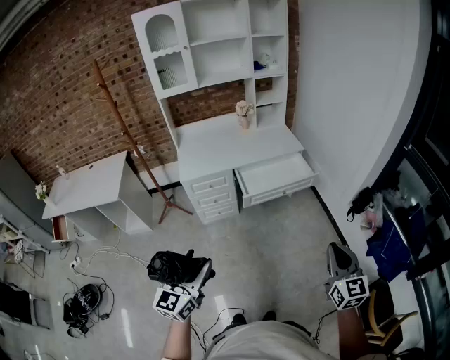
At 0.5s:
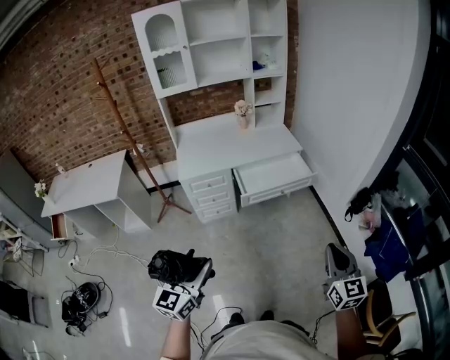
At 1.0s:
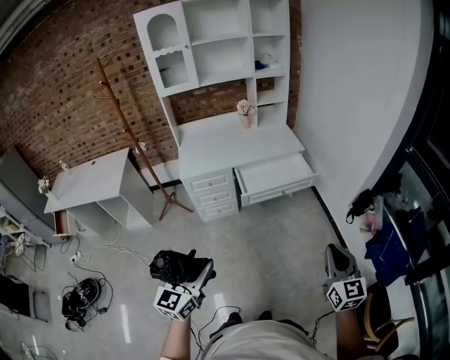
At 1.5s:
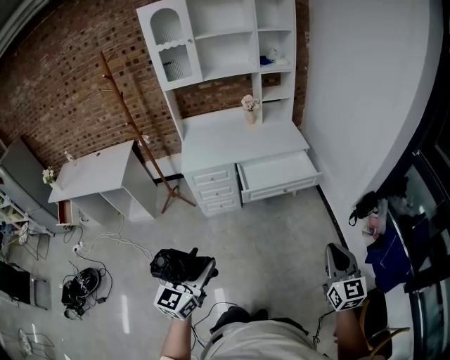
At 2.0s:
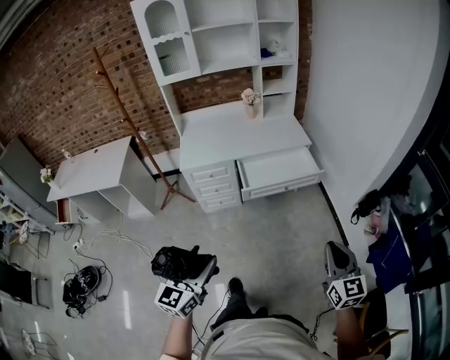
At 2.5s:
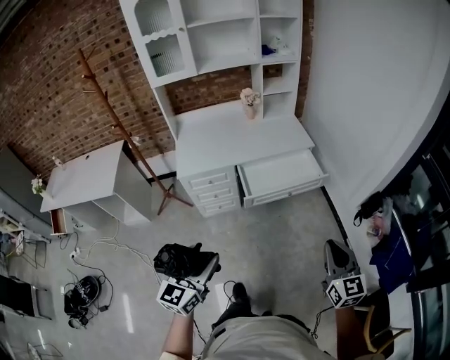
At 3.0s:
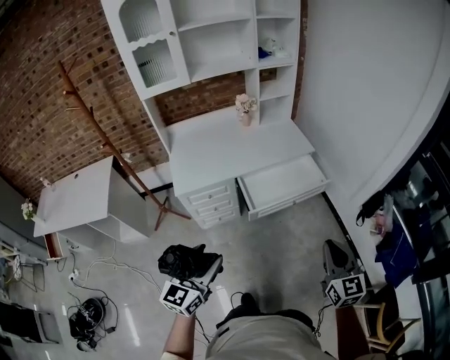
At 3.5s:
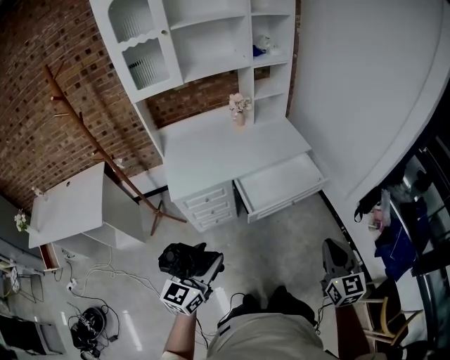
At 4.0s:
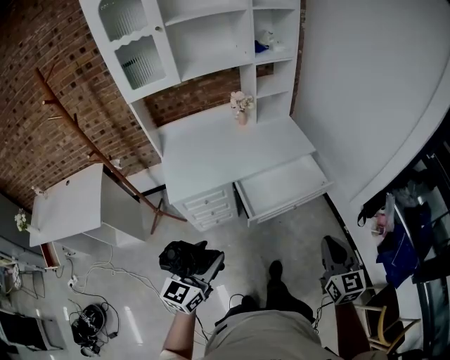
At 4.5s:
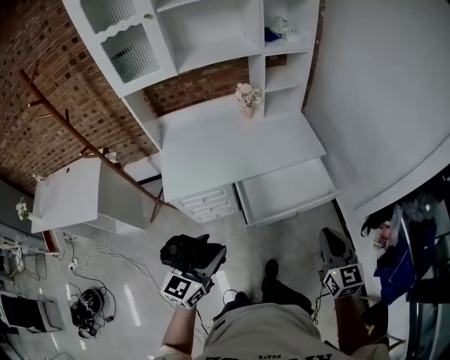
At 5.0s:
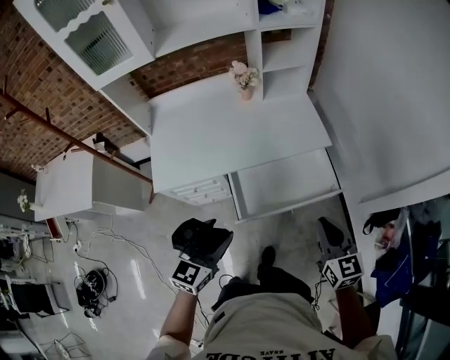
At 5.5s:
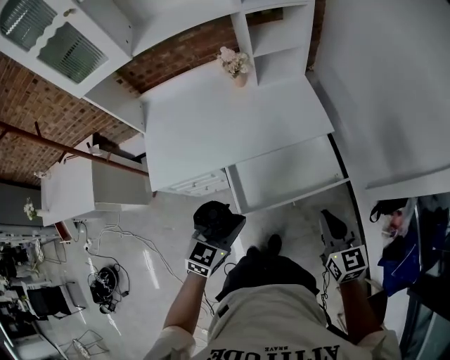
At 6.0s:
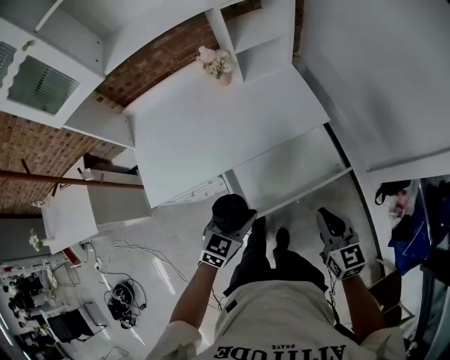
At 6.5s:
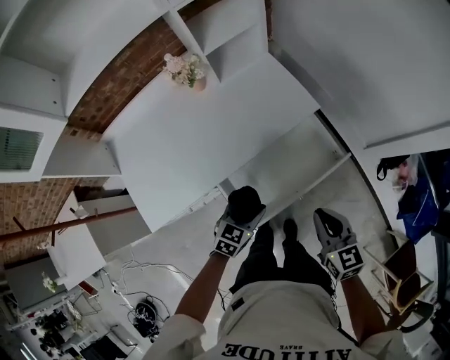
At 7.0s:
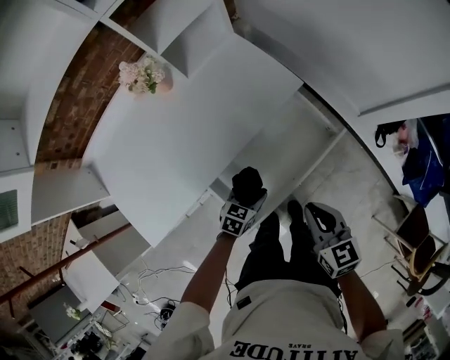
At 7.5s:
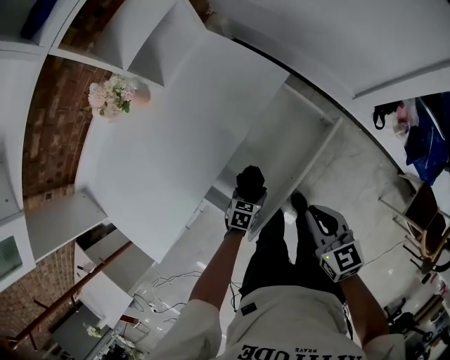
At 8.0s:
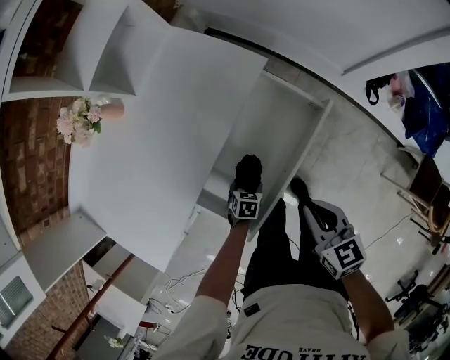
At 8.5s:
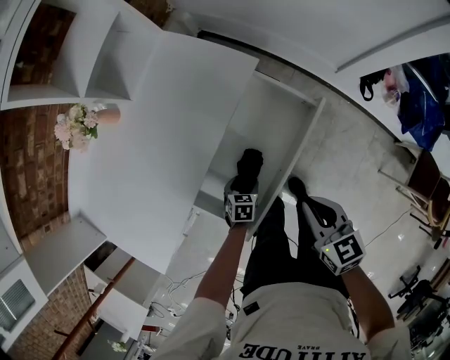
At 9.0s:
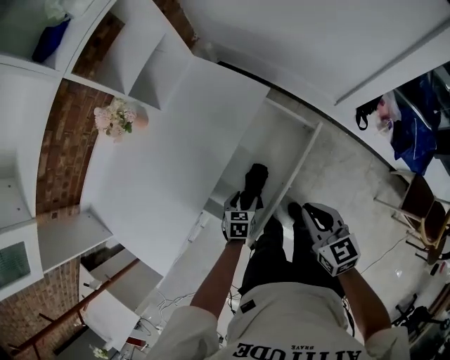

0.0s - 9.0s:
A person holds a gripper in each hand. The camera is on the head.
0.0s - 2.0s: The right gripper goes approximately 5 cm forward; the left gripper is displaced to the right by some 5 cm.
2.0s - 4.5s: The left gripper goes approximately 35 cm forward. The right gripper travels forward and to the left by some 35 cm.
4.5s - 7.0s: The right gripper shifts about 20 cm downward, and changes its angle by about 30 degrees. The left gripper is displaced downward by about 40 cm, and tilts its fingers some 40 degrees downward.
7.0s - 9.0s: The left gripper travels downward and back again, approximately 15 cm each way.

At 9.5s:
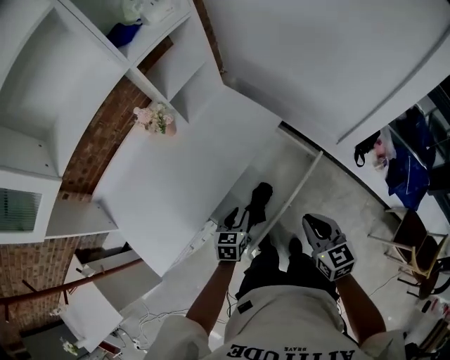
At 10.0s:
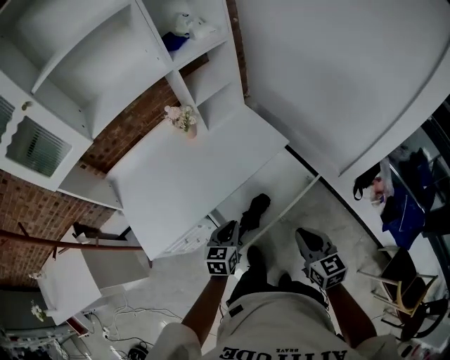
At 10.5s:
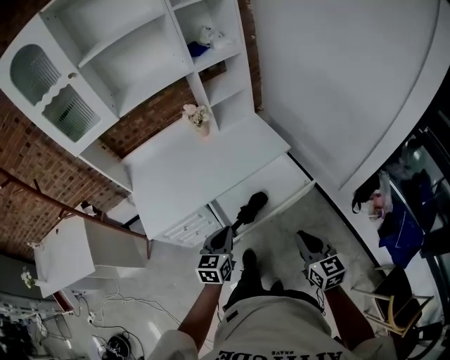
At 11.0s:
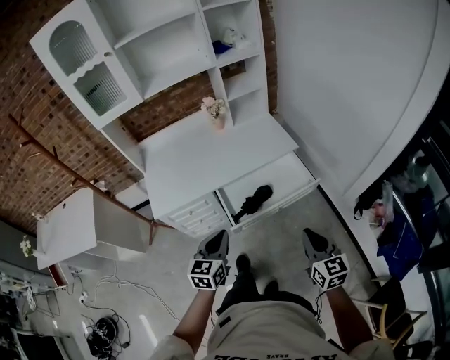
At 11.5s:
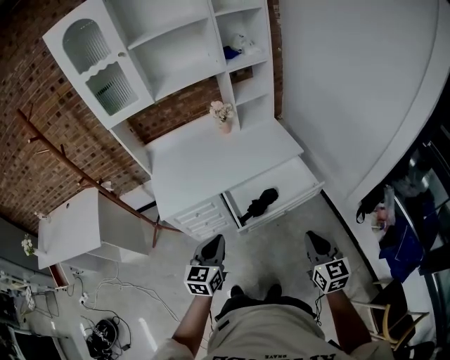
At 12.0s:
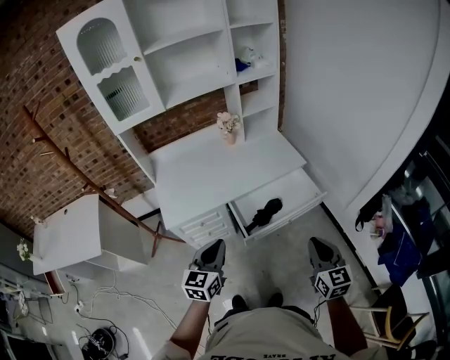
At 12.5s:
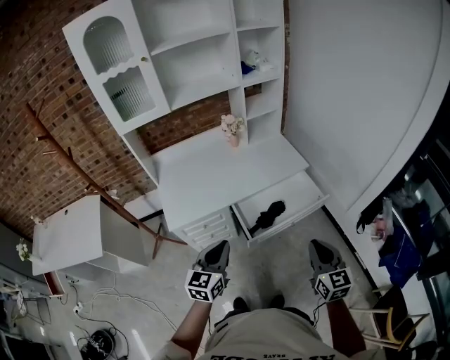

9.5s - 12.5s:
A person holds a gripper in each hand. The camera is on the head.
9.5s - 11.0s: The right gripper moves backward and upward, some 20 cm, and swivels approximately 20 degrees, while the left gripper heads backward and upward, covering about 35 cm, turns by roughly 30 degrees, and closes.
11.0s - 12.5s: The right gripper moves to the left, roughly 10 cm. The left gripper travels to the left and upward by roughly 10 cm.

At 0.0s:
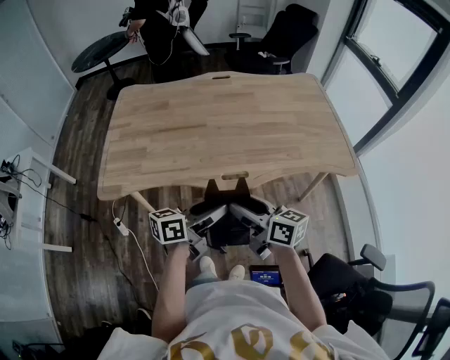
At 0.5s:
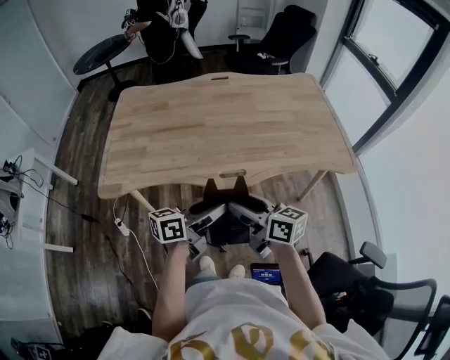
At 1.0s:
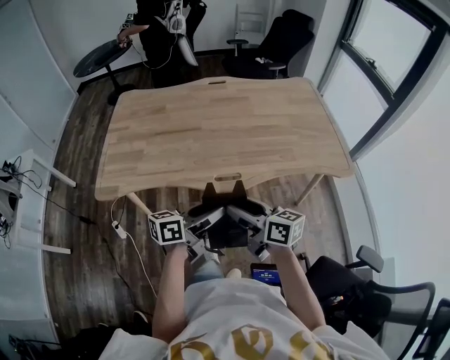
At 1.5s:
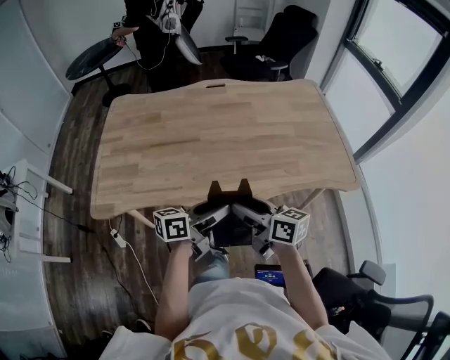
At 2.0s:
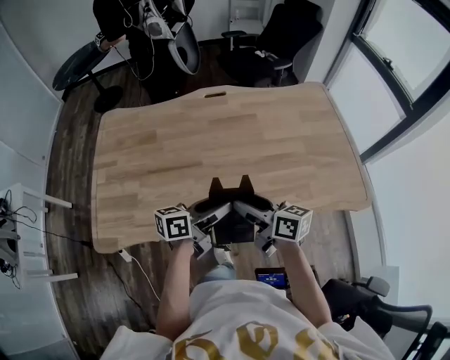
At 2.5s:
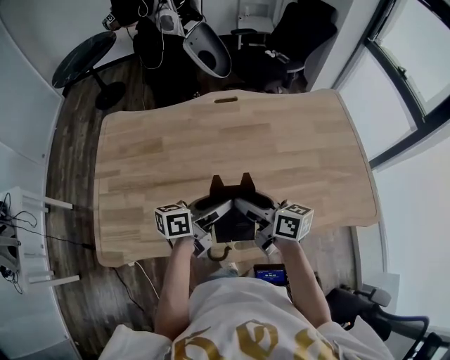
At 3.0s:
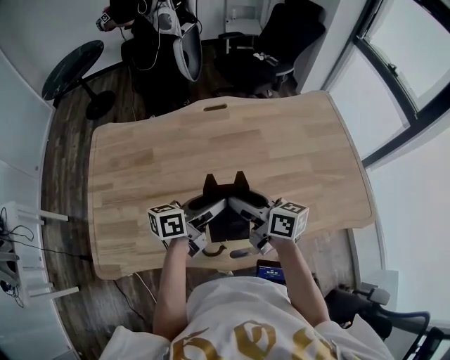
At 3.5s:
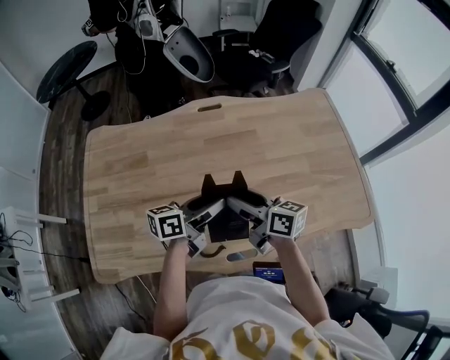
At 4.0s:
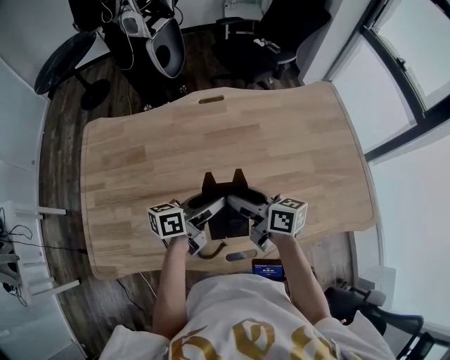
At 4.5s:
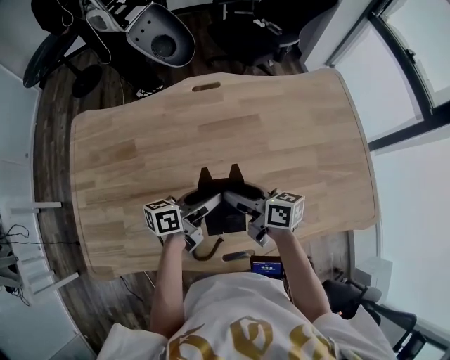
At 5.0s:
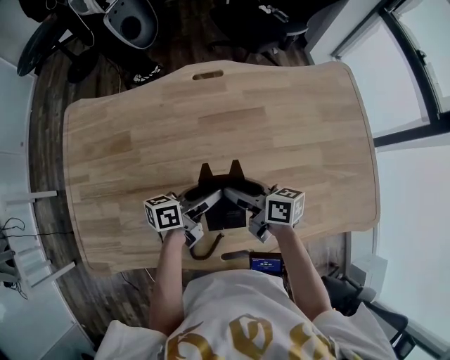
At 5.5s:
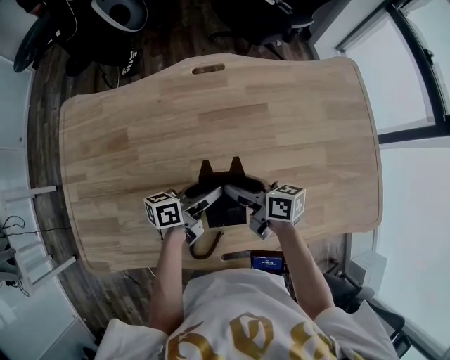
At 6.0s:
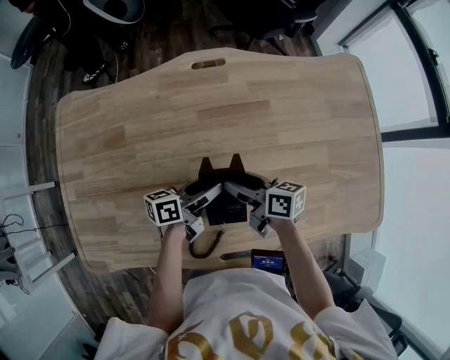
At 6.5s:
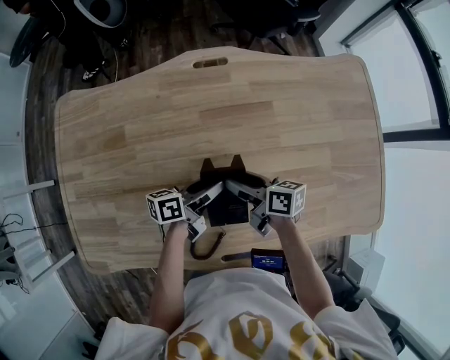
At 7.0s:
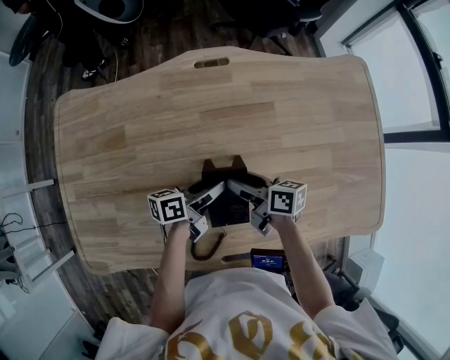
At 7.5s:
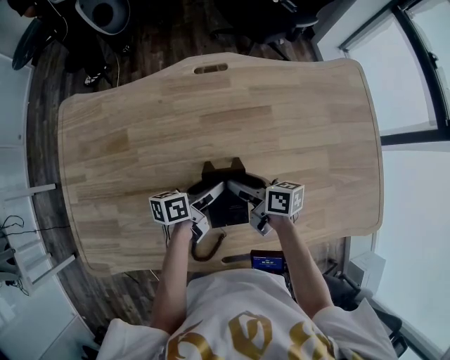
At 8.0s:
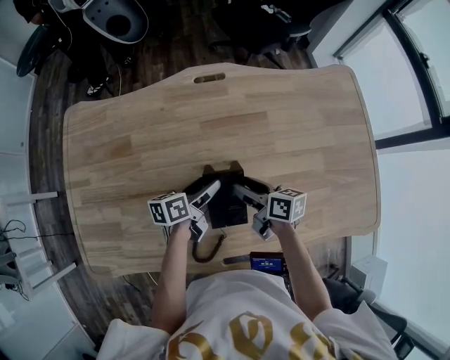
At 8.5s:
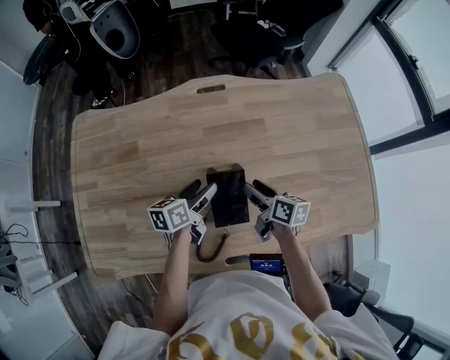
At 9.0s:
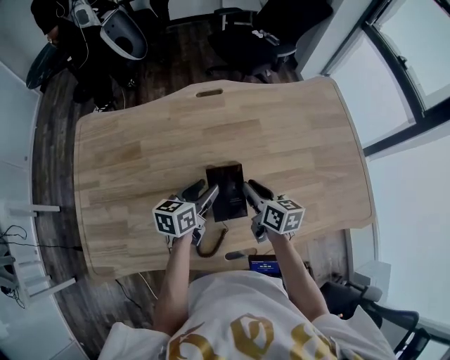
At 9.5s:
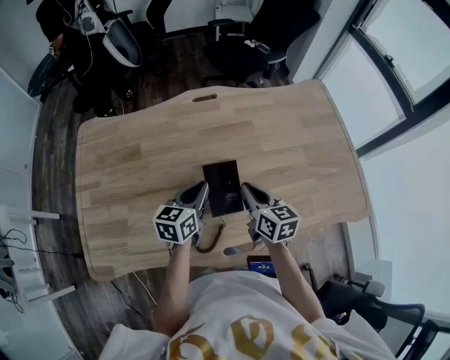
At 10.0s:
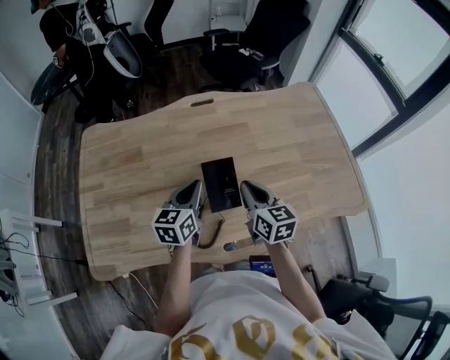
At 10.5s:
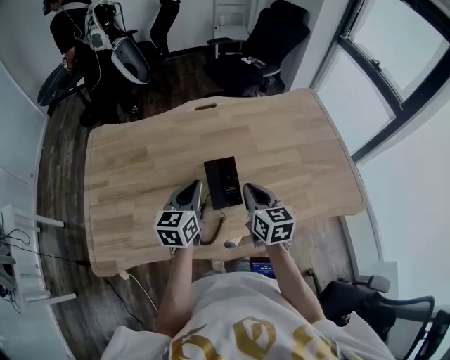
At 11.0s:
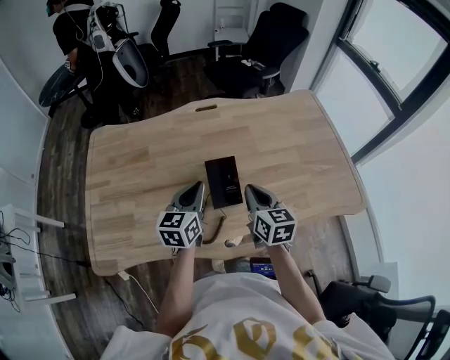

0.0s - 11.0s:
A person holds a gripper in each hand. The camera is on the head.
0.0s - 2.0s: The grippers both shift forward by about 25 cm.
2.0s - 3.5s: Both grippers move forward, some 15 cm.
3.5s - 5.5s: The two grippers go roughly 15 cm downward and forward.
5.5s - 7.5s: The grippers move only a little.
7.5s - 9.0s: The right gripper heads upward and backward, covering some 10 cm, turns by some 30 degrees, and closes, while the left gripper goes approximately 10 cm upward, and swivels approximately 30 degrees.
9.0s - 11.0s: The right gripper moves backward and upward, some 15 cm, and swivels some 20 degrees. Meanwhile the left gripper goes about 15 cm upward and backward, changes its angle by some 20 degrees, and closes.

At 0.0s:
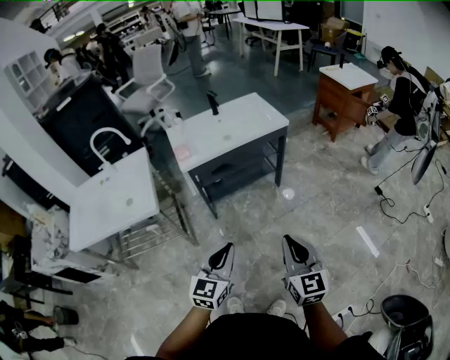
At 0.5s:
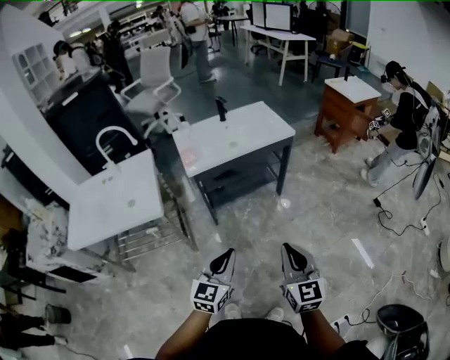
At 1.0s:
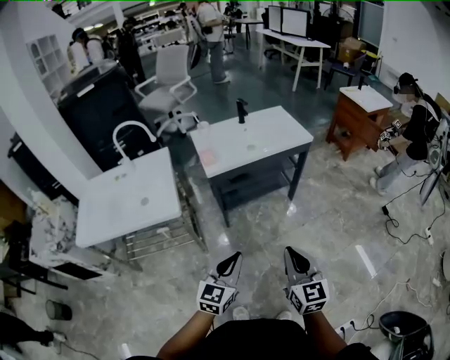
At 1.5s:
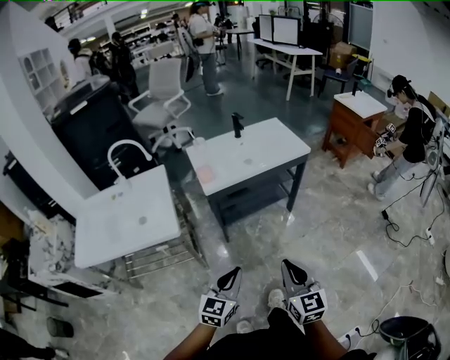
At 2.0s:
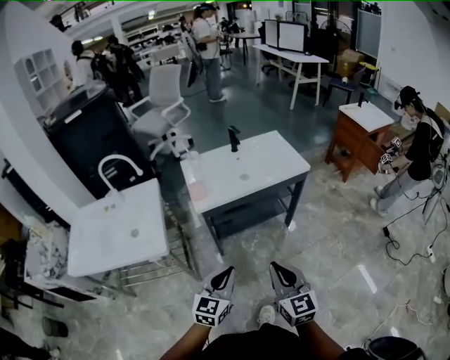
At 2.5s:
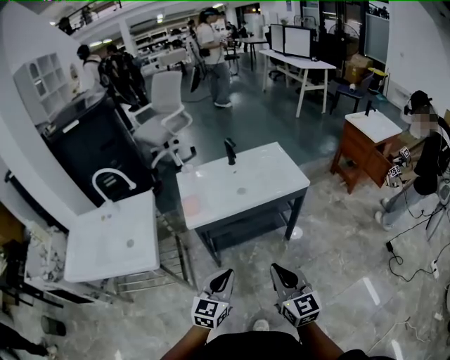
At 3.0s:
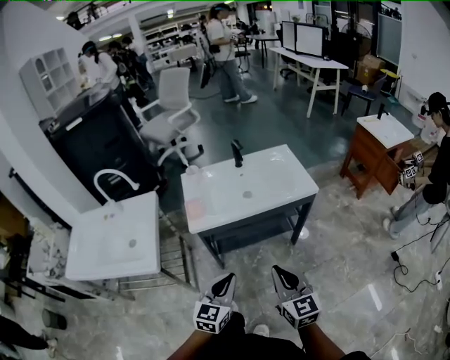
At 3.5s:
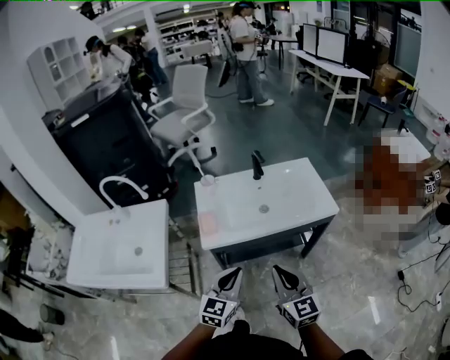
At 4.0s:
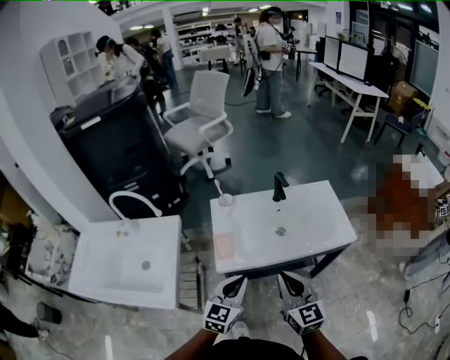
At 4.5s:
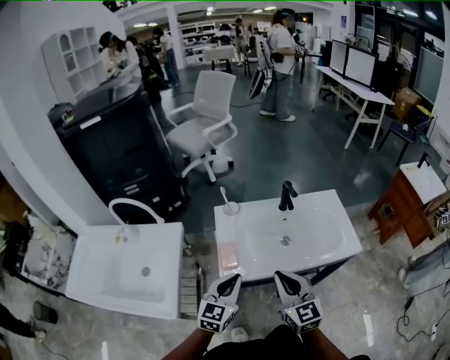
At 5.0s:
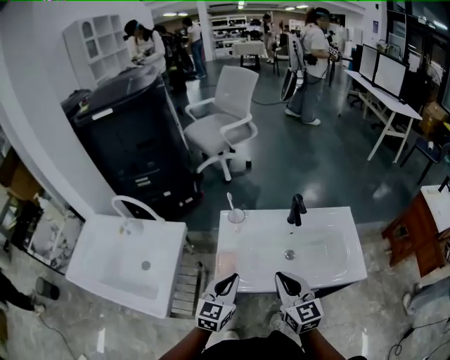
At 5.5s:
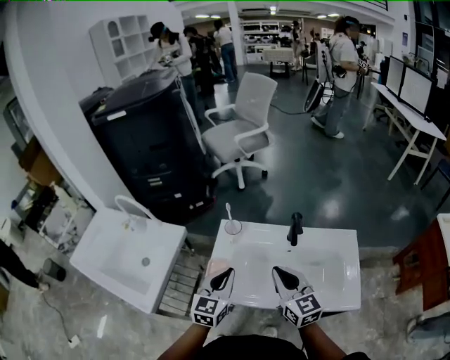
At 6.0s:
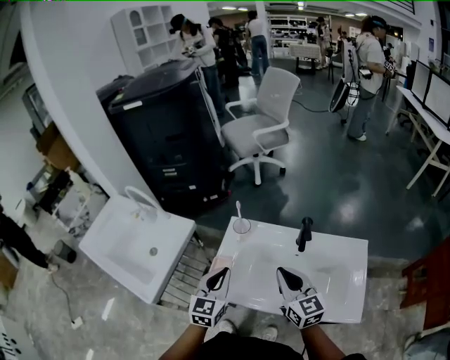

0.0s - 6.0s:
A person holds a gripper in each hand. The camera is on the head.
0.0s - 2.0s: The two grippers go roughly 15 cm forward and to the left.
2.0s - 4.0s: The grippers both shift forward by some 30 cm.
4.0s - 6.0s: The left gripper moves about 15 cm, and changes its angle by roughly 30 degrees; the right gripper moves some 25 cm, and rotates roughly 30 degrees.
